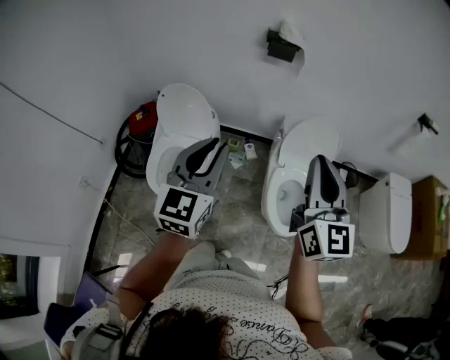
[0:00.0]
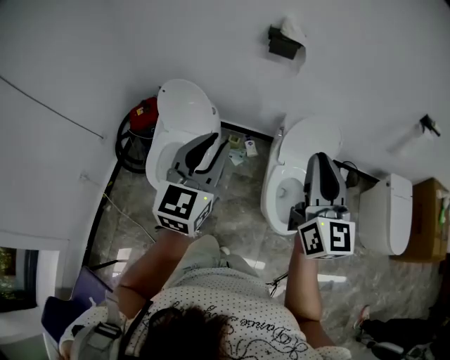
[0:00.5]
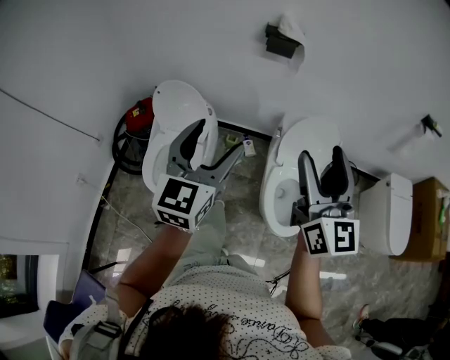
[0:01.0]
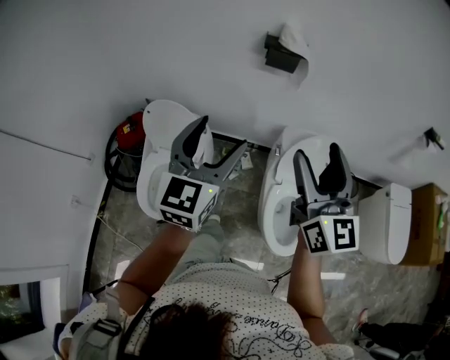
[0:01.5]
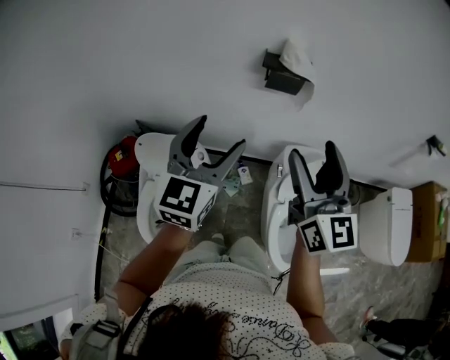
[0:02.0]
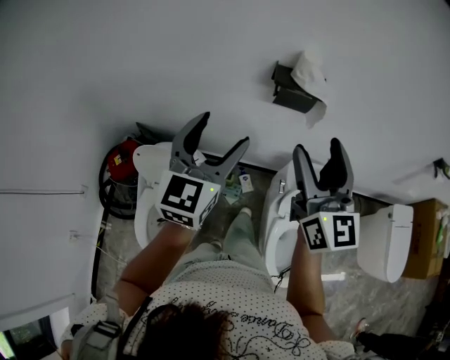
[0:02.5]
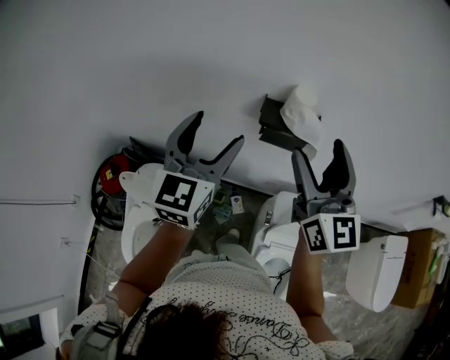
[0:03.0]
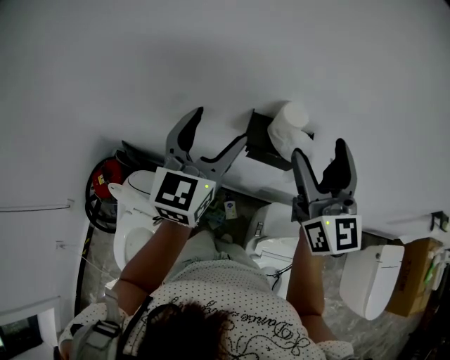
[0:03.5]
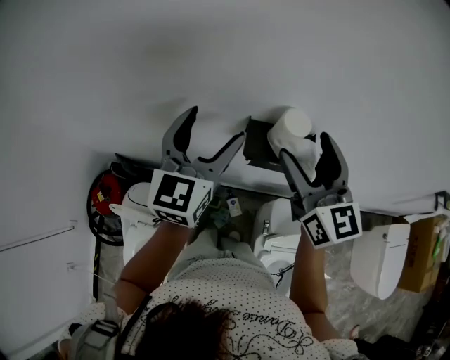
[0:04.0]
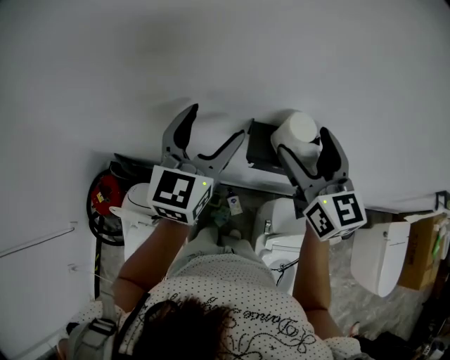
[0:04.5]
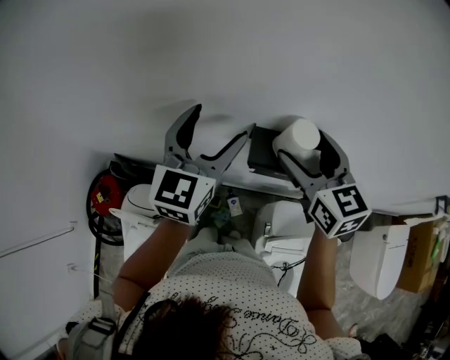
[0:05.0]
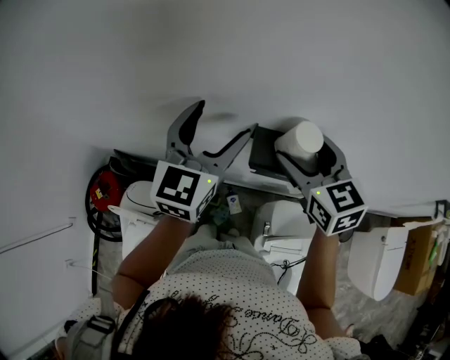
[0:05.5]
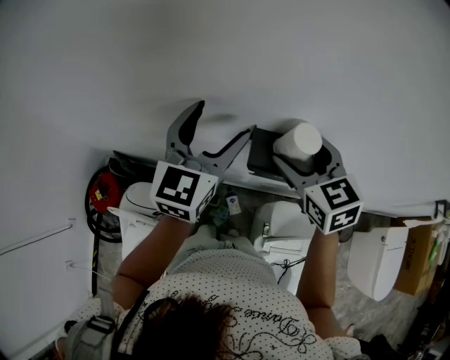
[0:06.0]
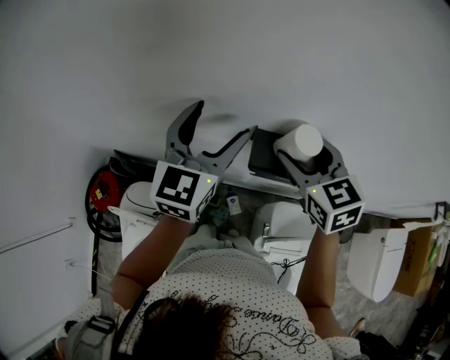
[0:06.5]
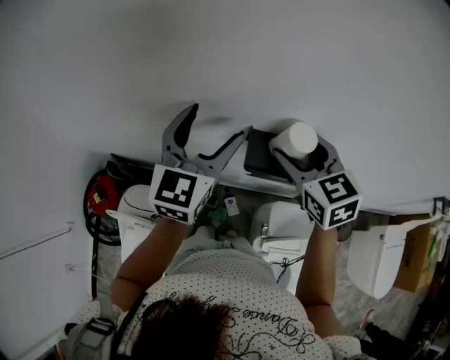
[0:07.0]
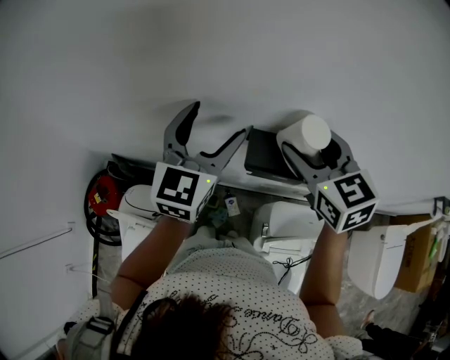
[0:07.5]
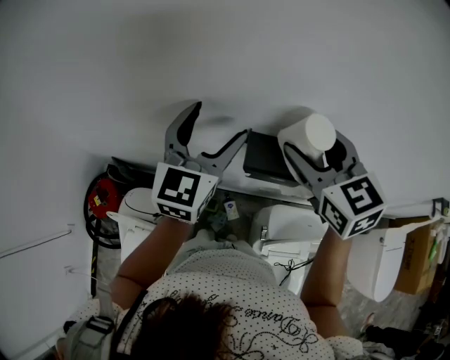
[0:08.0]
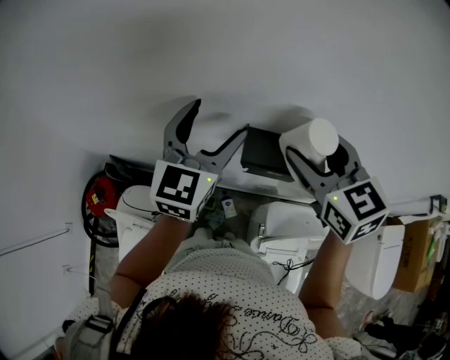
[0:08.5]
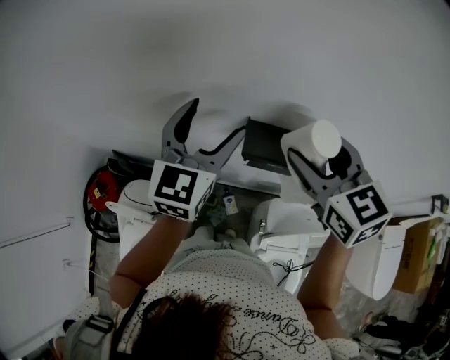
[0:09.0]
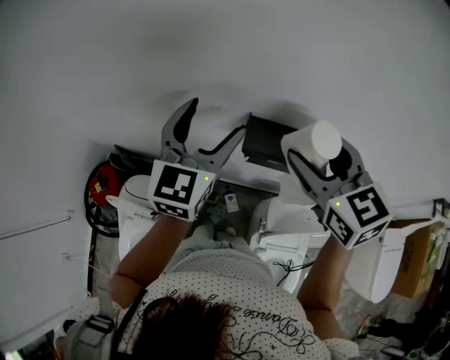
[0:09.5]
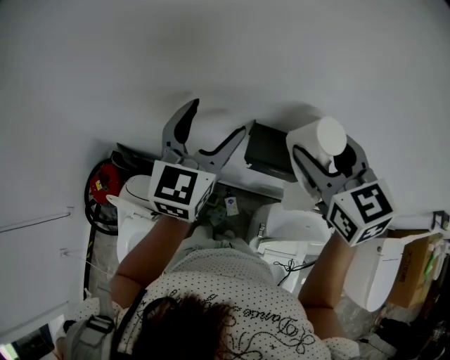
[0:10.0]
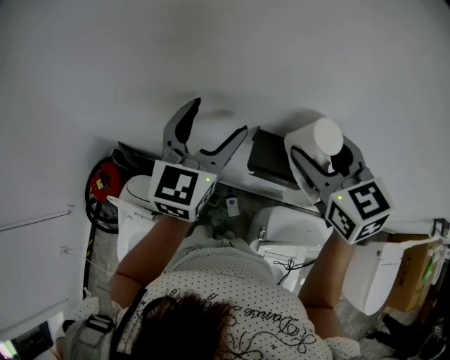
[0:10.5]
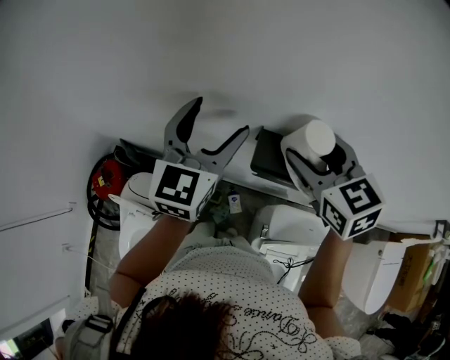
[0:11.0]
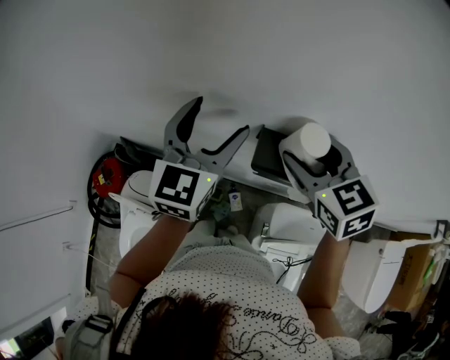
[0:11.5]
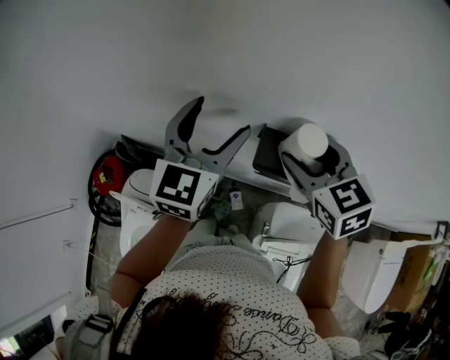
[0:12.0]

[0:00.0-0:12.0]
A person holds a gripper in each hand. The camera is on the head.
0:00.0 to 0:02.0: The grippers both shift forward by approximately 30 cm. The left gripper opens its fingers. Meanwhile the right gripper opens its fingers.
0:02.0 to 0:04.0: The grippers both shift forward by approximately 35 cm.
0:04.0 to 0:06.0: The right gripper shifts roughly 5 cm downward, and swivels about 30 degrees.
0:06.0 to 0:08.0: The right gripper is displaced upward by about 5 cm.
0:08.0 to 0:10.0: The grippers stay close to where they were, moving slightly.
0:10.0 to 0:12.0: The right gripper heads downward, covering some 5 cm.

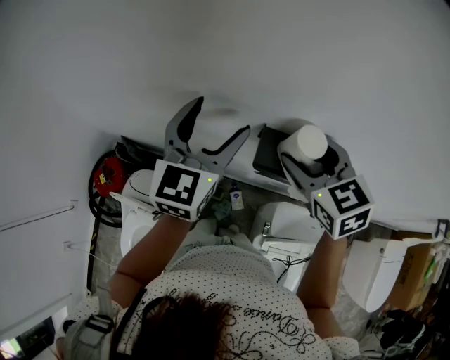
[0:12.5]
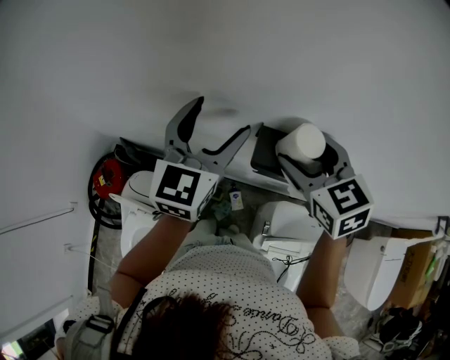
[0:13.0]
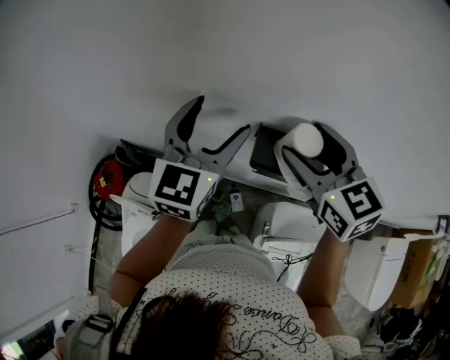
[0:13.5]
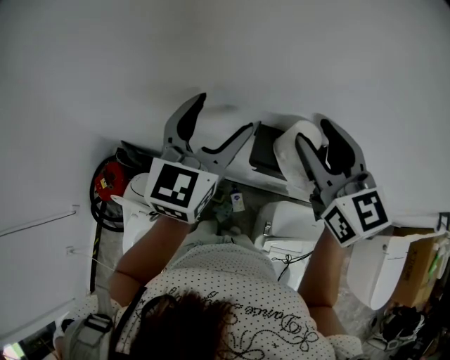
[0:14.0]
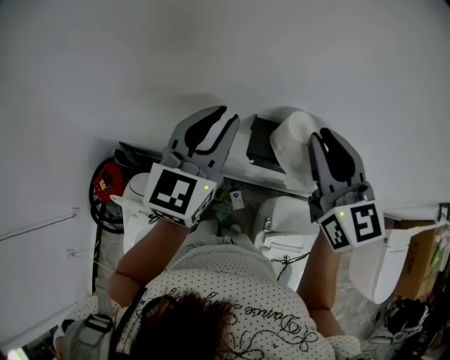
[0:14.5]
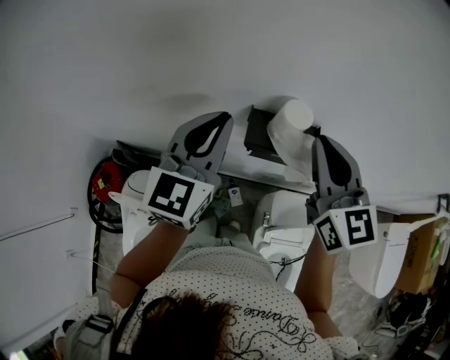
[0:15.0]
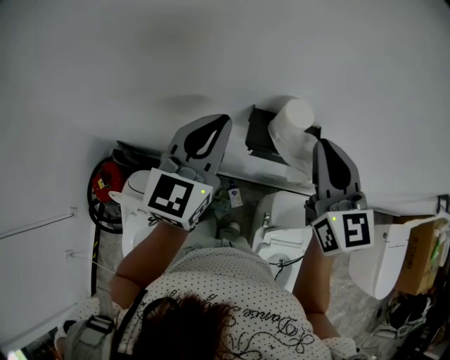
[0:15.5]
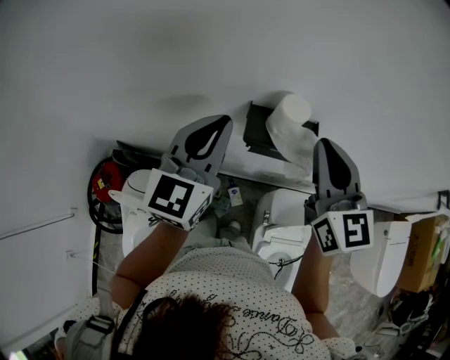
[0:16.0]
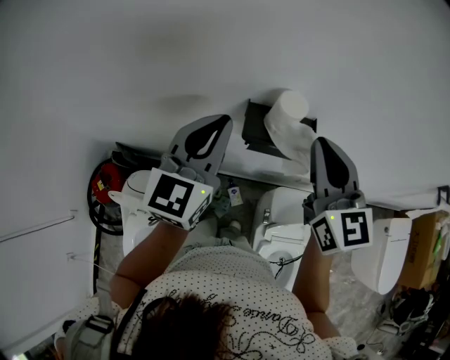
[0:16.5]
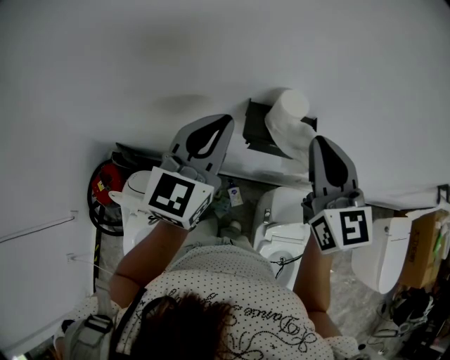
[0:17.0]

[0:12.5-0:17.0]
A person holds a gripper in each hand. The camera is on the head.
0:12.5 to 0:14.5: The left gripper closes up. The right gripper heads upward, covering roughly 10 cm, rotates some 30 degrees, and closes.
0:14.5 to 0:17.0: There are only small adjustments of the grippers.

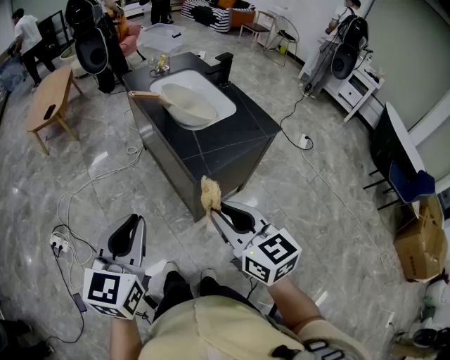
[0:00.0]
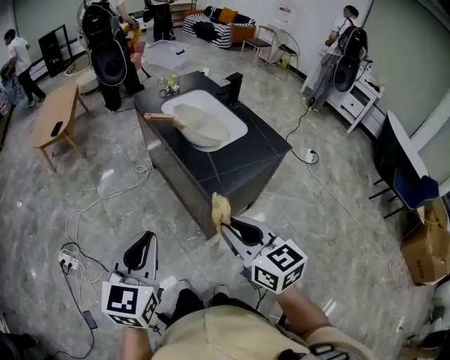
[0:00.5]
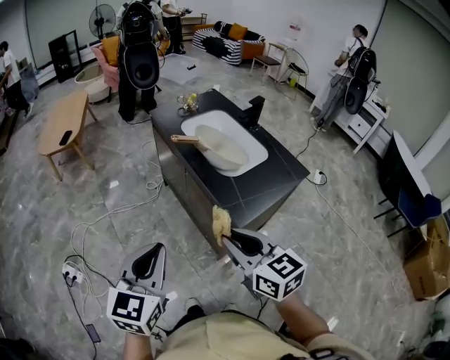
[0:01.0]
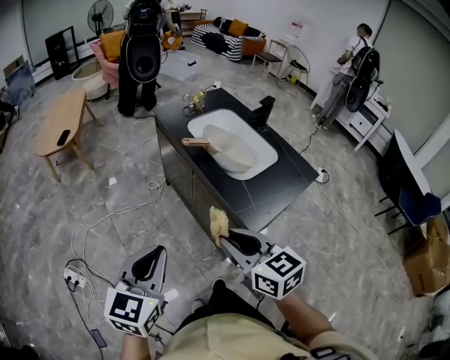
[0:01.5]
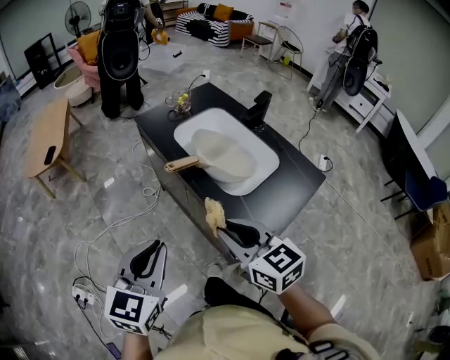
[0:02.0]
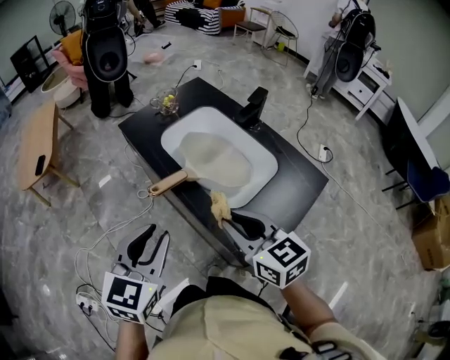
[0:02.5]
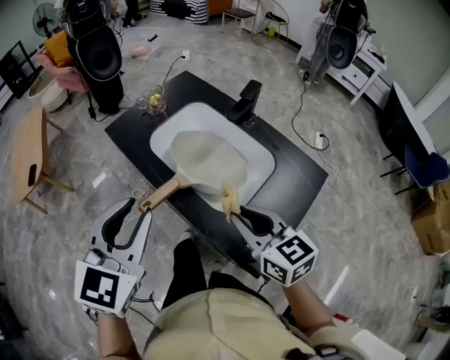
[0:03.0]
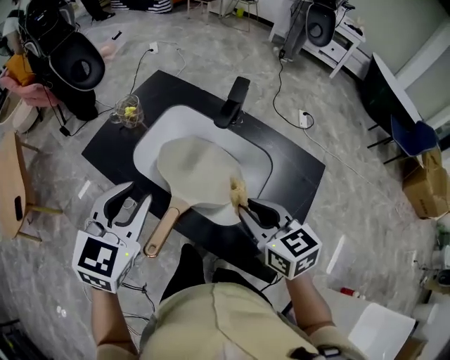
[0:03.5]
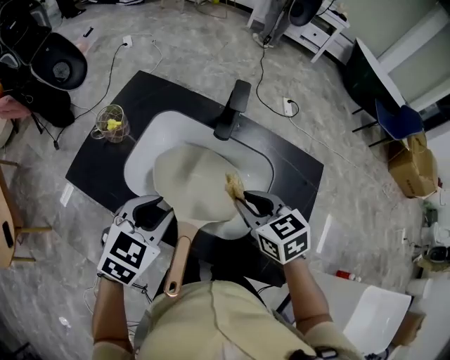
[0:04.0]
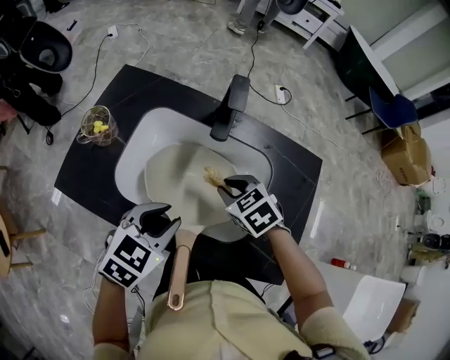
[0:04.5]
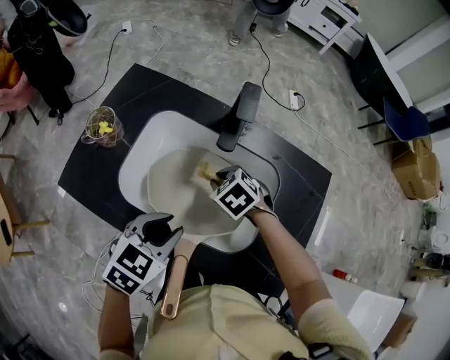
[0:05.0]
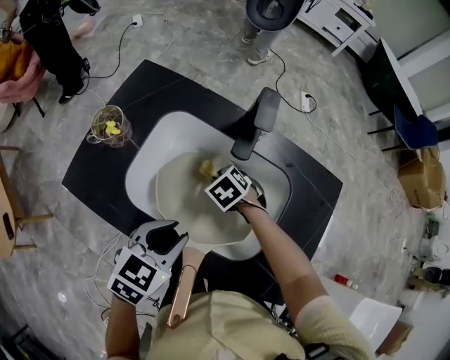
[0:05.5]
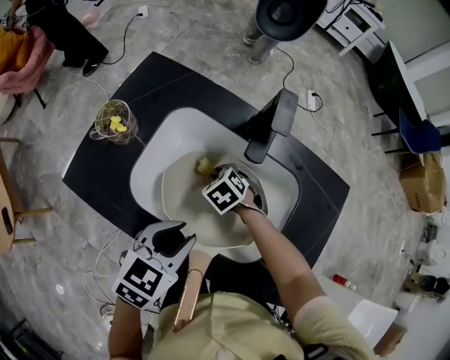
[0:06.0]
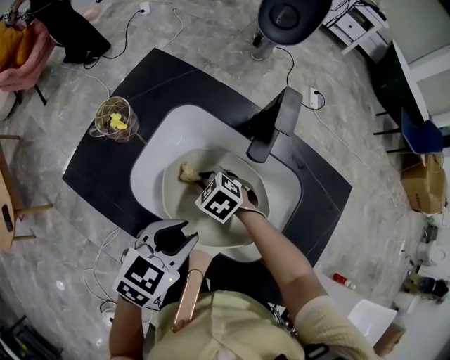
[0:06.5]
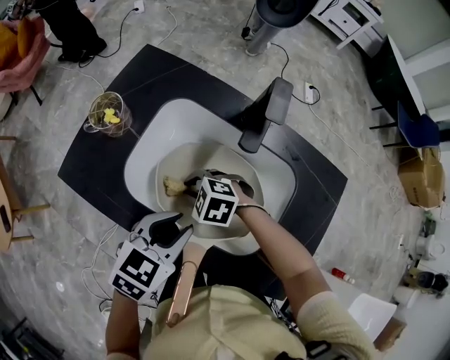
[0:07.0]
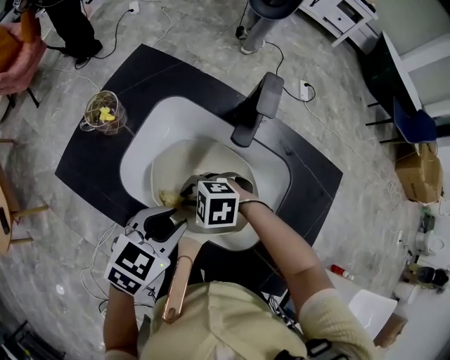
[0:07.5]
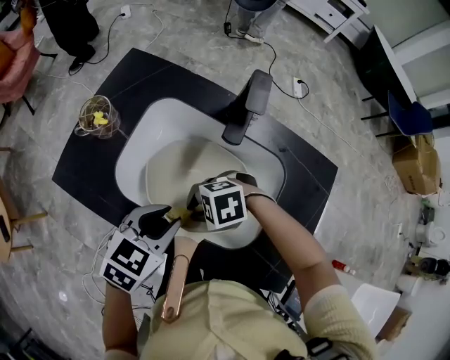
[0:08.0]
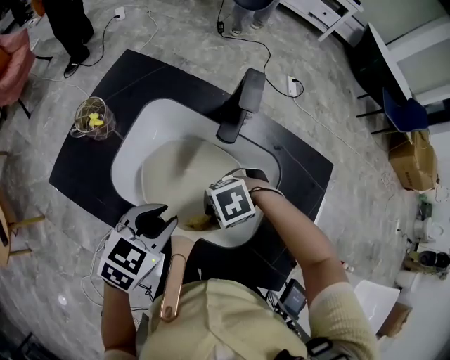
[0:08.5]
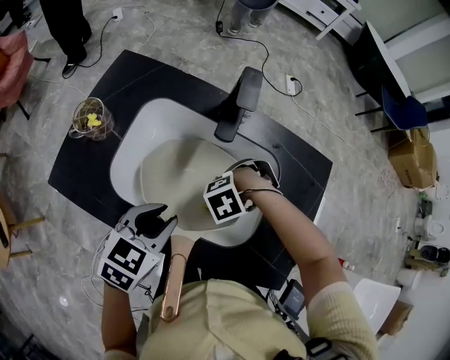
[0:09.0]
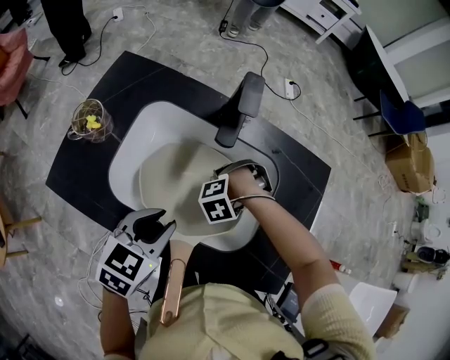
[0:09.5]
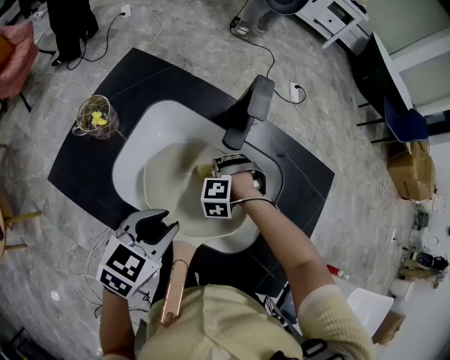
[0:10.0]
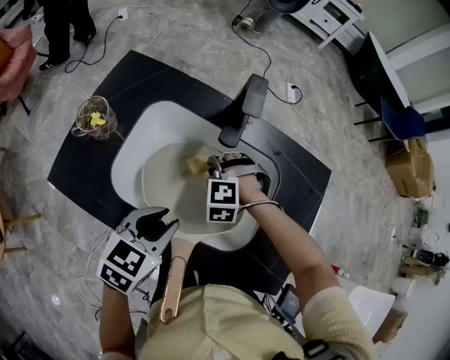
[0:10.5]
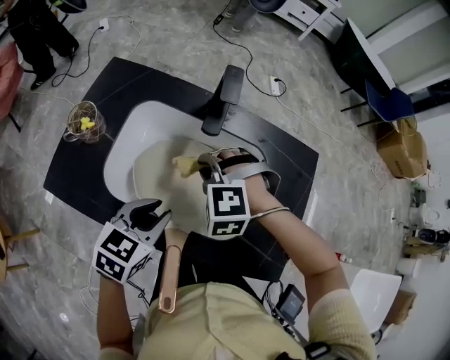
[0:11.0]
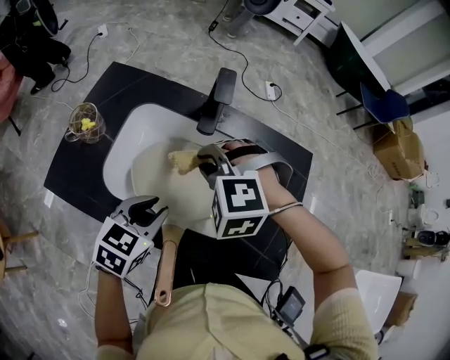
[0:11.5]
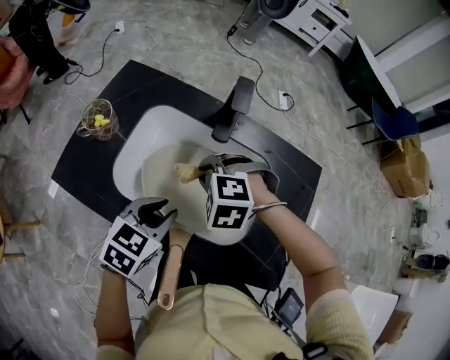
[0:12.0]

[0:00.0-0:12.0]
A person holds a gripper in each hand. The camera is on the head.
0:00.0 to 0:02.0: The right gripper travels forward and to the left by approximately 30 cm, while the left gripper shifts roughly 25 cm forward.
0:02.0 to 0:04.0: The right gripper shifts by some 30 cm, and rotates roughly 40 degrees, while the left gripper moves approximately 40 cm, turns by about 50 degrees, and opens up.
0:04.0 to 0:06.0: The left gripper shifts about 5 cm downward; the right gripper heads downward, forward and to the left, covering roughly 25 cm, and rotates about 30 degrees.
0:06.0 to 0:08.0: The right gripper changes place by about 20 cm, and changes its angle by approximately 60 degrees.
0:08.0 to 0:10.0: The right gripper ends up some 20 cm from where it was, and turns by approximately 50 degrees.
0:10.0 to 0:12.0: The right gripper is displaced upward by roughly 15 cm, and turns by about 20 degrees.
